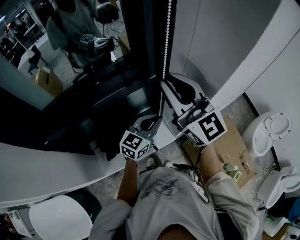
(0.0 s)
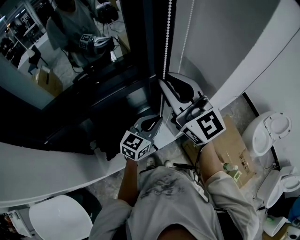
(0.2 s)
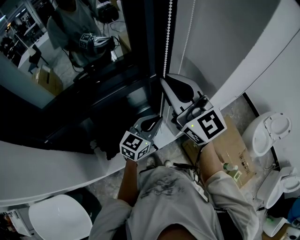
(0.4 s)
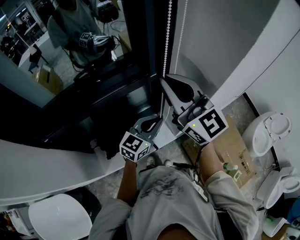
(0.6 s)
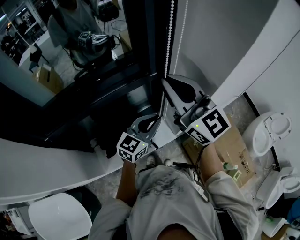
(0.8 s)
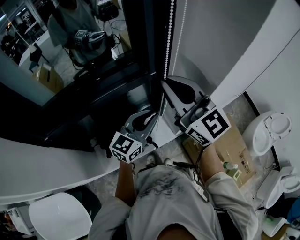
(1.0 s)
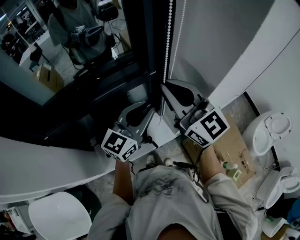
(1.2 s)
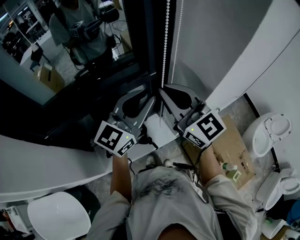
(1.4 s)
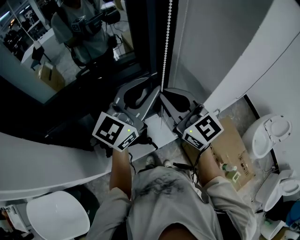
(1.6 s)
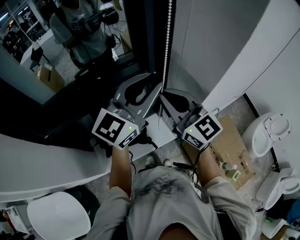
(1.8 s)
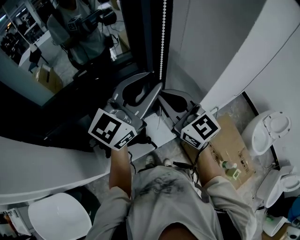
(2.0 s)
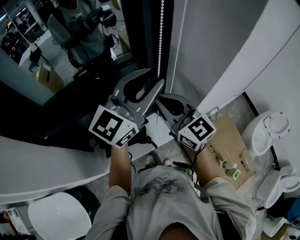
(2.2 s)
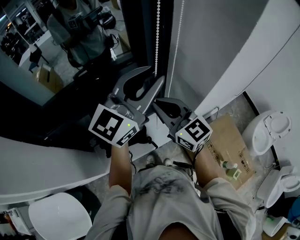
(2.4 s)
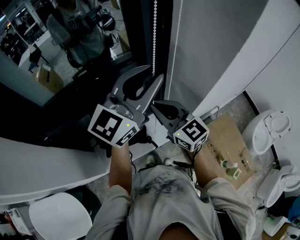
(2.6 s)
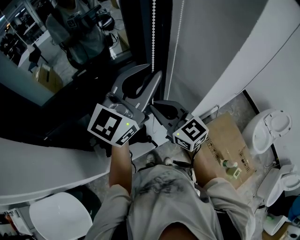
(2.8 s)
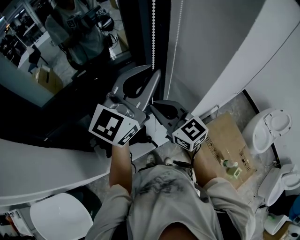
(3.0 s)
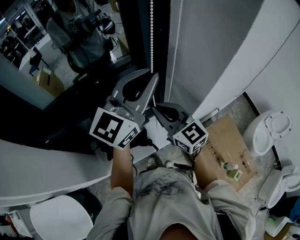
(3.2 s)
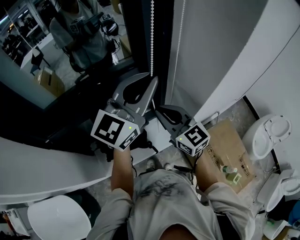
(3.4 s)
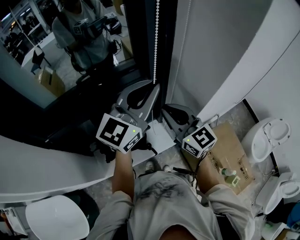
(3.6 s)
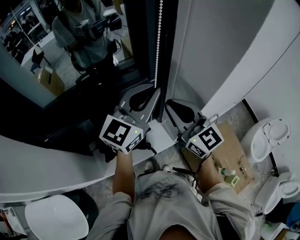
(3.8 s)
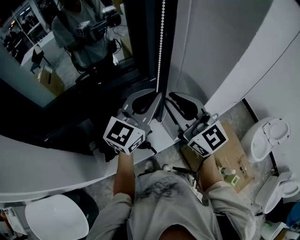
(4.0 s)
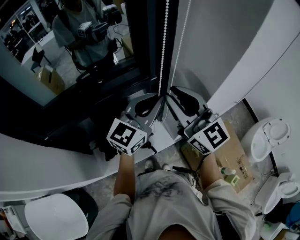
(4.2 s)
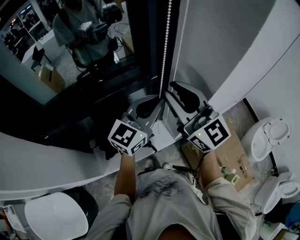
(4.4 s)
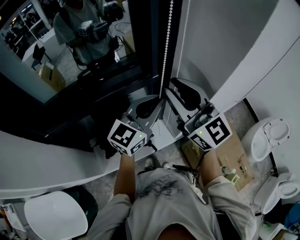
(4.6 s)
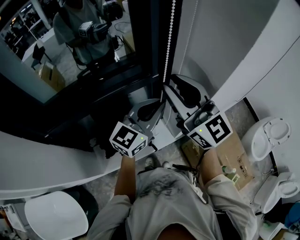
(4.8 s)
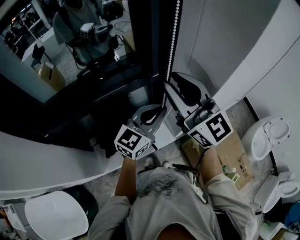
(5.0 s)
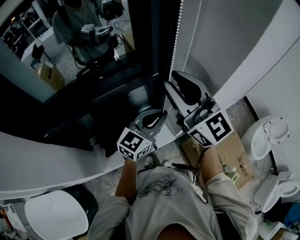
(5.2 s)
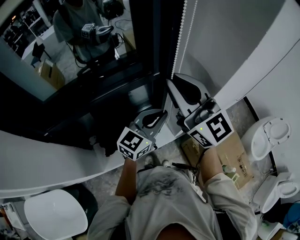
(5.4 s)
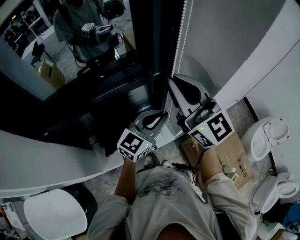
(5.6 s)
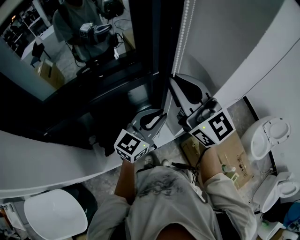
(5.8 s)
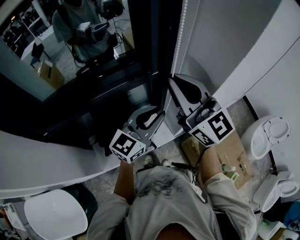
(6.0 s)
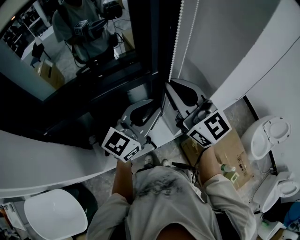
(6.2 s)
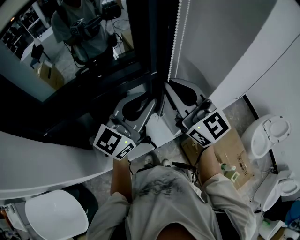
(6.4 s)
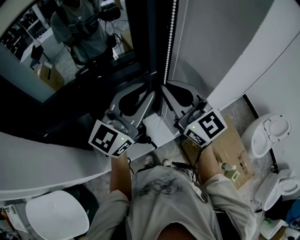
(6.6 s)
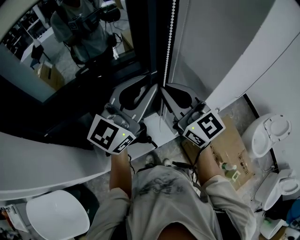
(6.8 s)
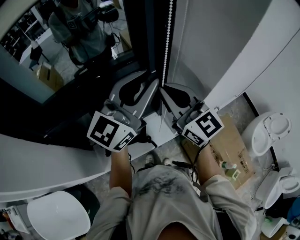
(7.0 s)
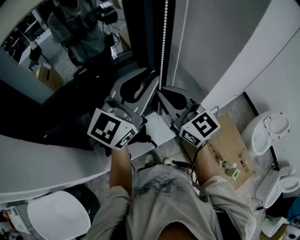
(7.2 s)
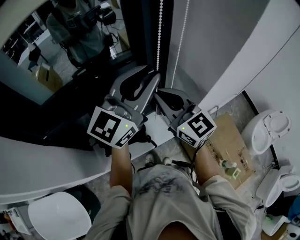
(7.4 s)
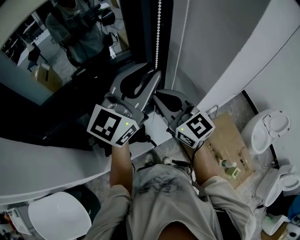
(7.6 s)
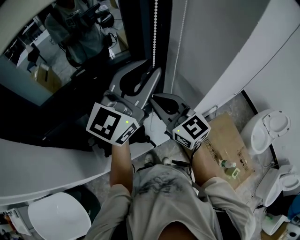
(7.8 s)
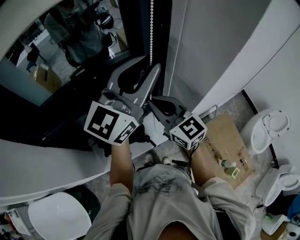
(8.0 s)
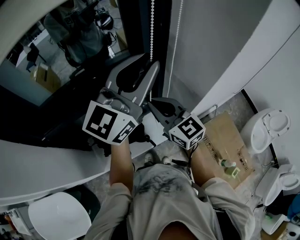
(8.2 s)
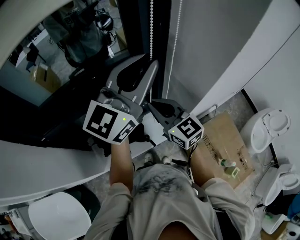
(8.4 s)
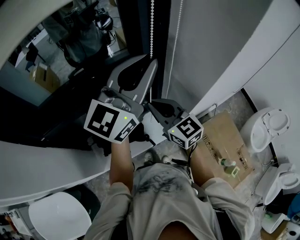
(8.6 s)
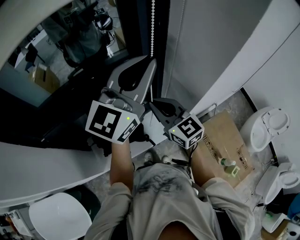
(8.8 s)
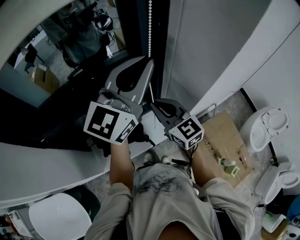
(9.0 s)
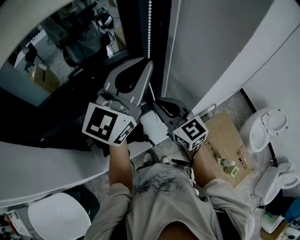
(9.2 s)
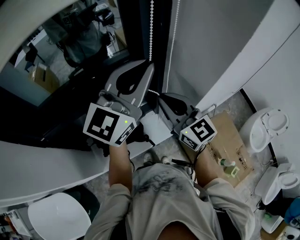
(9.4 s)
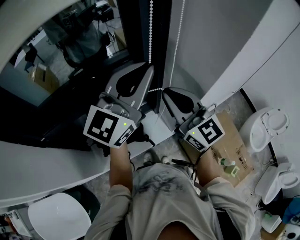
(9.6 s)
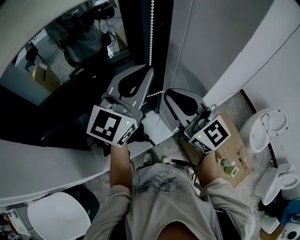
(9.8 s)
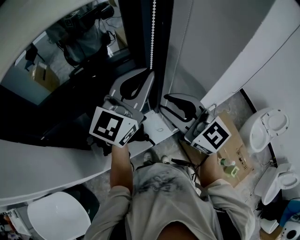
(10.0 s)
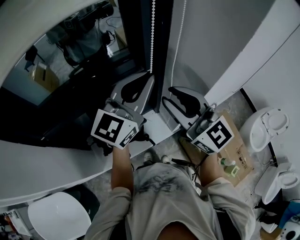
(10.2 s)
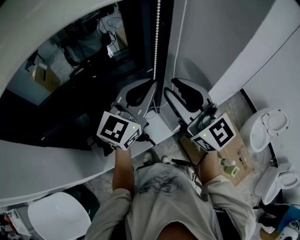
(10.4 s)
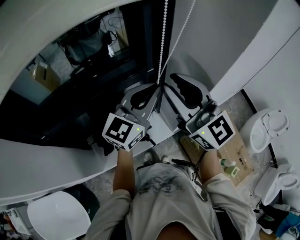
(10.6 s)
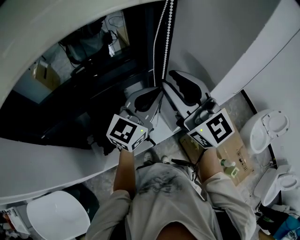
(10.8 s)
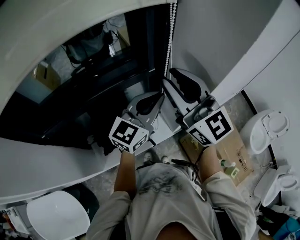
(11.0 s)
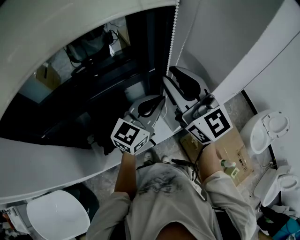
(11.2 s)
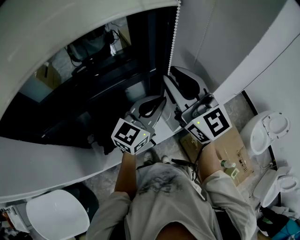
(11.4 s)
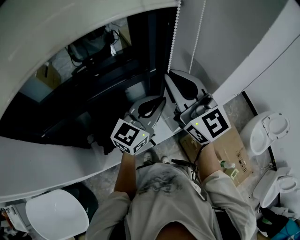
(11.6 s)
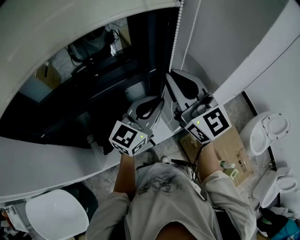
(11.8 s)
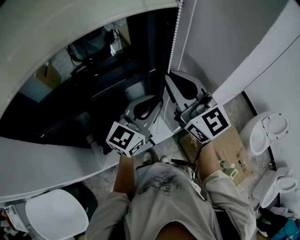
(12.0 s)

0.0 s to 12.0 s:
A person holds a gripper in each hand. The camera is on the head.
0.0 to 1.6 s: The left gripper shifts approximately 20 cm upward, and rotates roughly 30 degrees. The right gripper heads downward, covering some 5 cm.
1.6 to 3.0 s: The right gripper travels downward by some 10 cm.
3.0 to 4.4 s: The left gripper travels downward by some 10 cm. The right gripper shifts about 15 cm upward.
4.4 to 6.0 s: The left gripper moves approximately 5 cm.
6.0 to 7.6 s: The right gripper travels downward by roughly 10 cm. The left gripper heads upward, covering roughly 15 cm.
7.6 to 9.0 s: The right gripper is displaced downward by about 10 cm.
9.0 to 10.4 s: The left gripper travels downward by some 10 cm, while the right gripper is displaced upward by roughly 15 cm, swivels approximately 20 degrees, and opens up.
10.4 to 12.0 s: The right gripper closes. The left gripper goes approximately 5 cm downward.

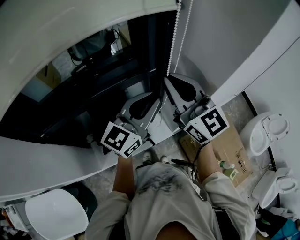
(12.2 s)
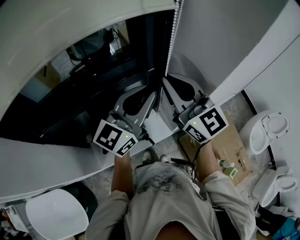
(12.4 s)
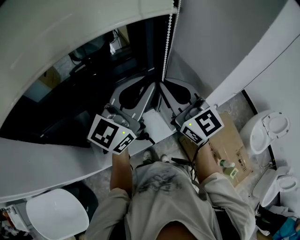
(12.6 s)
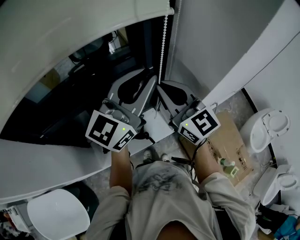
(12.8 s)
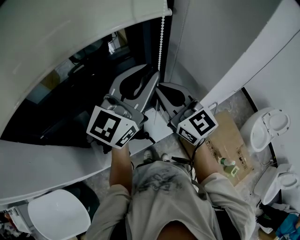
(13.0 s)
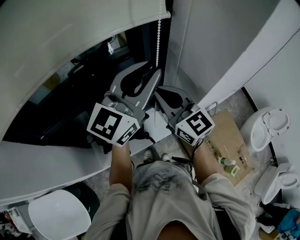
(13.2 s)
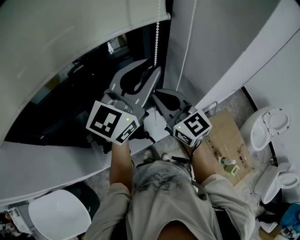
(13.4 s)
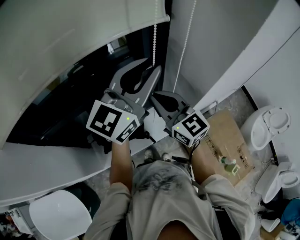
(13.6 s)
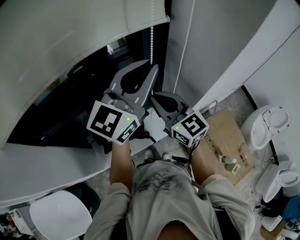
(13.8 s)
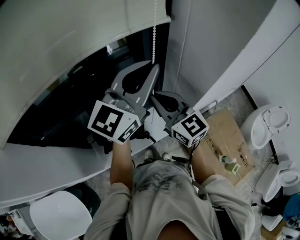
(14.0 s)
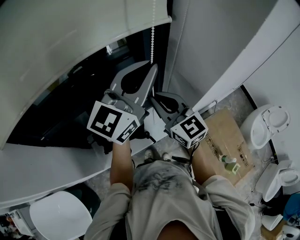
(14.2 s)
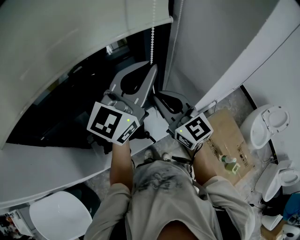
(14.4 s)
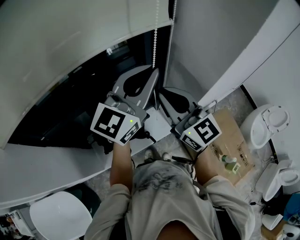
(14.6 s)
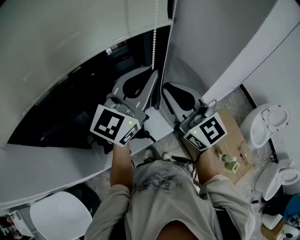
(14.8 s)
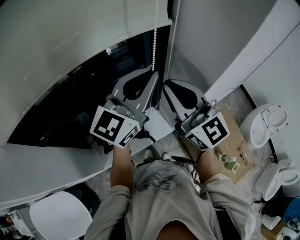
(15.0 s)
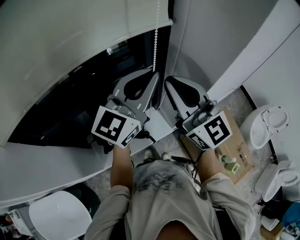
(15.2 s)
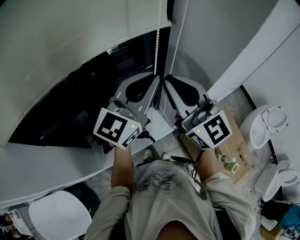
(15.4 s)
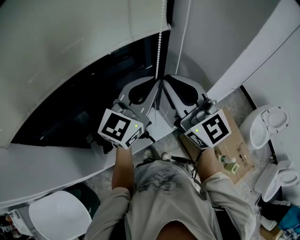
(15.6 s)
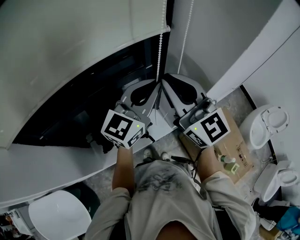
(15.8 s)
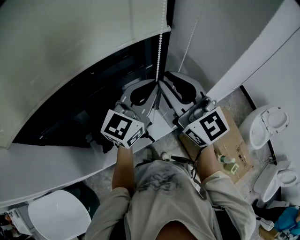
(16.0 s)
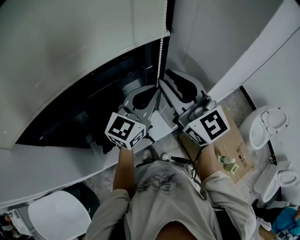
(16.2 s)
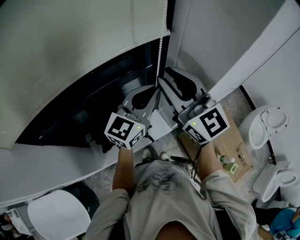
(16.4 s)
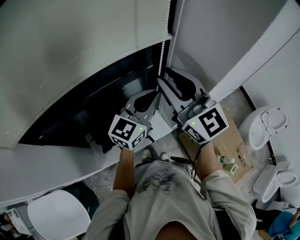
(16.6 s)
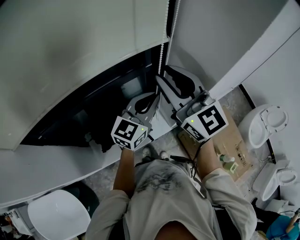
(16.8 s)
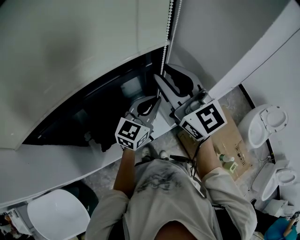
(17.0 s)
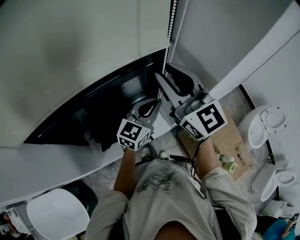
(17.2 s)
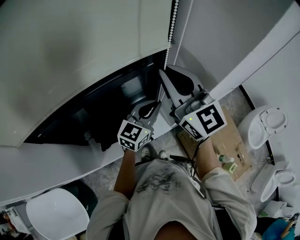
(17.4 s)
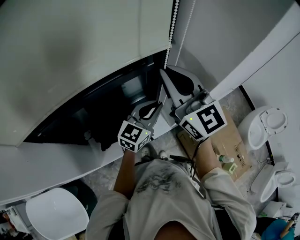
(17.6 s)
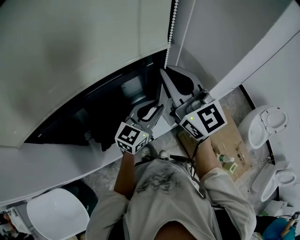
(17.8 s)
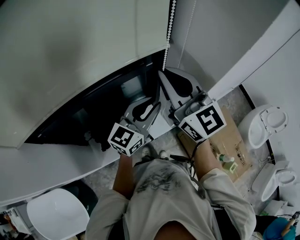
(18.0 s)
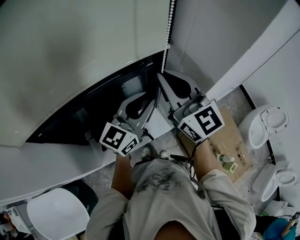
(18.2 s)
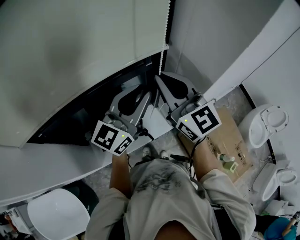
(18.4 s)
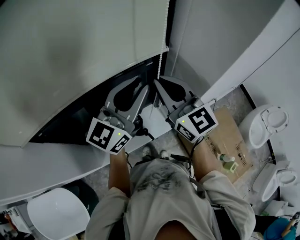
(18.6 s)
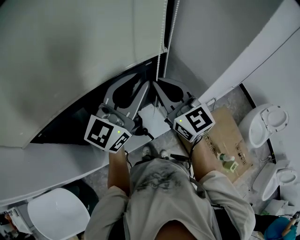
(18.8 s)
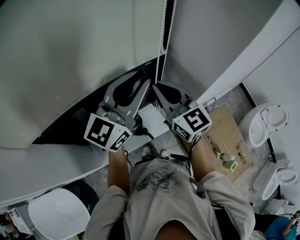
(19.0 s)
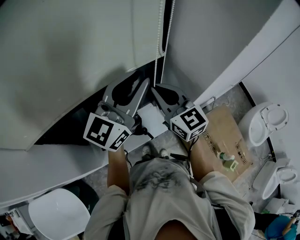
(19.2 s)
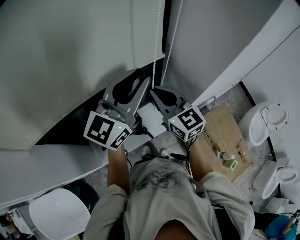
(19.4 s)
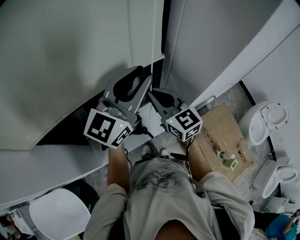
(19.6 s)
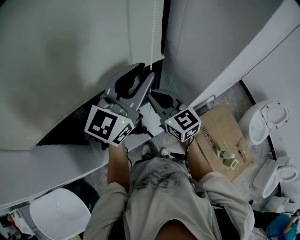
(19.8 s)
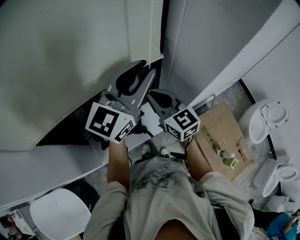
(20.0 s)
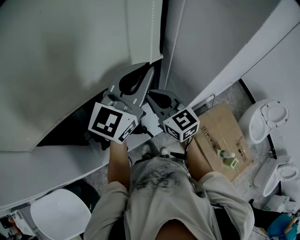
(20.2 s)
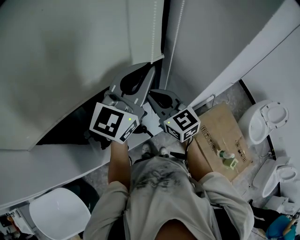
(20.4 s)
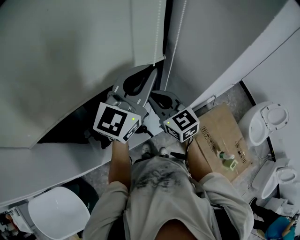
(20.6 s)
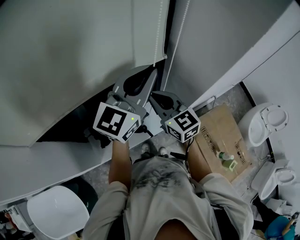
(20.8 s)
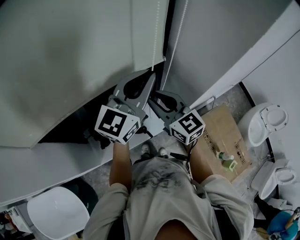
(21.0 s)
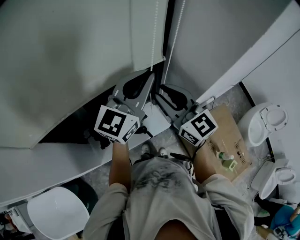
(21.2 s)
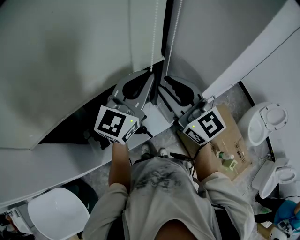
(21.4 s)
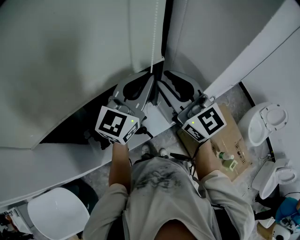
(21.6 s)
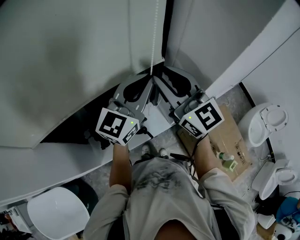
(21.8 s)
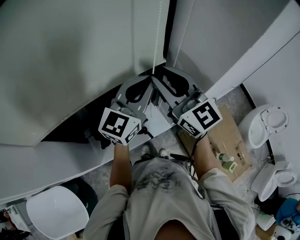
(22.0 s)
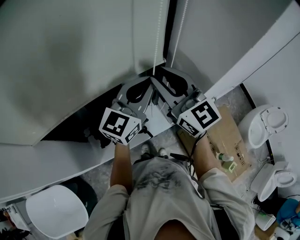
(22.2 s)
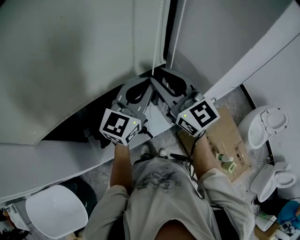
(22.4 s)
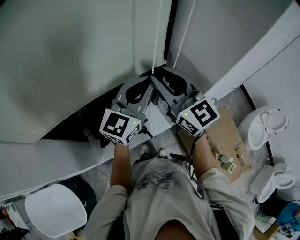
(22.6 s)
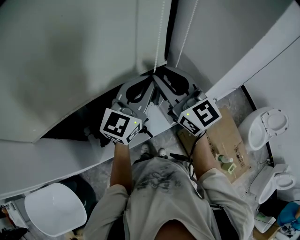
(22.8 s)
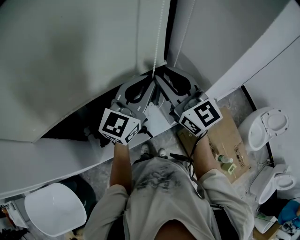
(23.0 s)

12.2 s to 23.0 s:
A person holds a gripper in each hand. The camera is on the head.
12.2 to 13.8 s: The left gripper moves upward, about 10 cm. Meanwhile the right gripper heads downward, covering roughly 10 cm.
13.8 to 15.2 s: The right gripper heads upward, covering some 10 cm.
15.2 to 16.8 s: The right gripper opens up; the left gripper heads downward, covering roughly 15 cm.
16.8 to 18.4 s: The left gripper moves upward, about 10 cm, while the right gripper closes up.
18.4 to 20.0 s: The left gripper heads upward, covering about 5 cm. Meanwhile the right gripper is displaced downward by some 15 cm.
20.0 to 21.4 s: The right gripper travels upward by roughly 10 cm, and opens. Meanwhile the left gripper closes up.
21.4 to 23.0 s: The grippers move only a little.

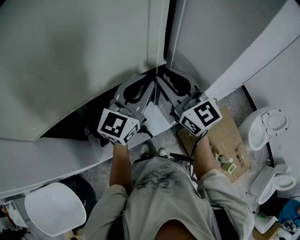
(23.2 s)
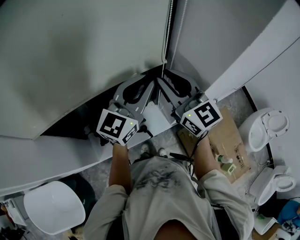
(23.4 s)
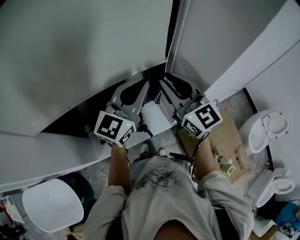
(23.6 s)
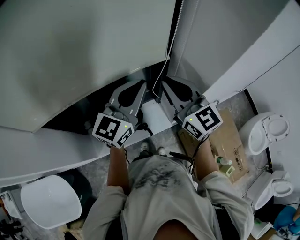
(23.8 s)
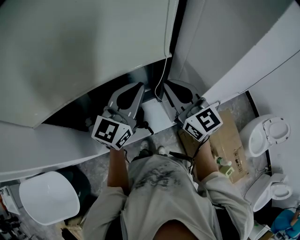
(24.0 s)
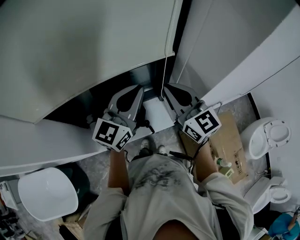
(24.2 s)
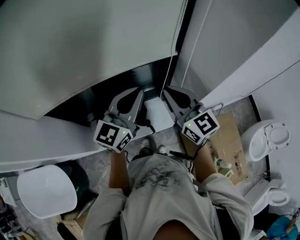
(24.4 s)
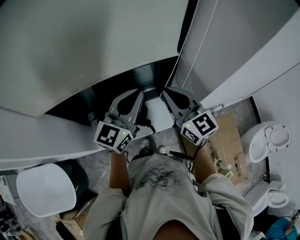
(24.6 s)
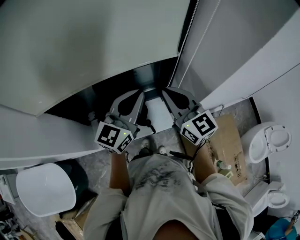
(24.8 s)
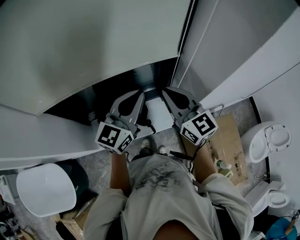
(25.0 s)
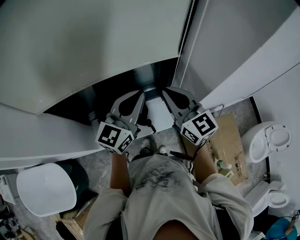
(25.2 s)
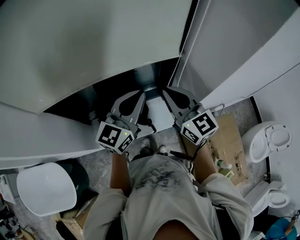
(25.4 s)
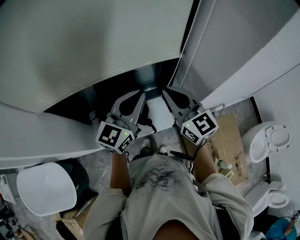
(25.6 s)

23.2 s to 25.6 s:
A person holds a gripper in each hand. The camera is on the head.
23.2 to 24.4 s: The left gripper goes approximately 5 cm to the left; the right gripper heads downward, covering roughly 5 cm, and closes its fingers.
24.4 to 25.6 s: The two grippers keep their place.
